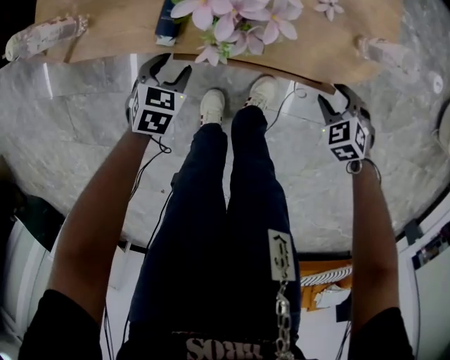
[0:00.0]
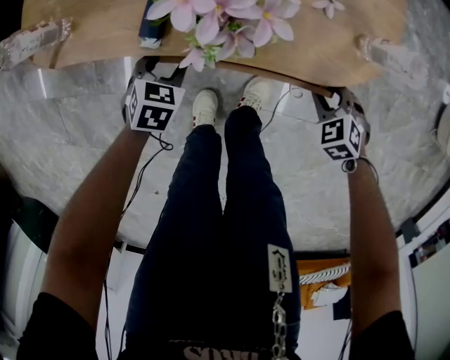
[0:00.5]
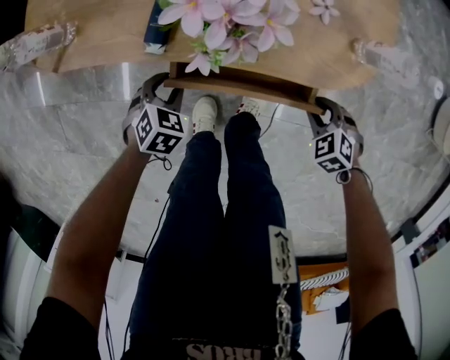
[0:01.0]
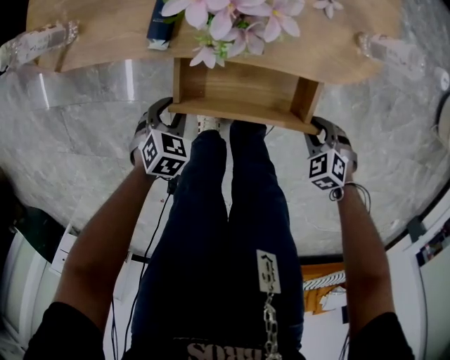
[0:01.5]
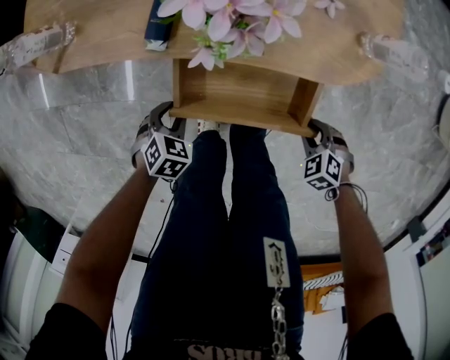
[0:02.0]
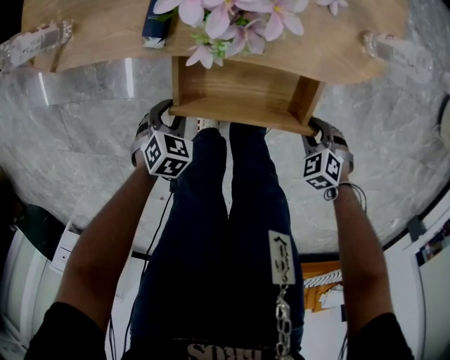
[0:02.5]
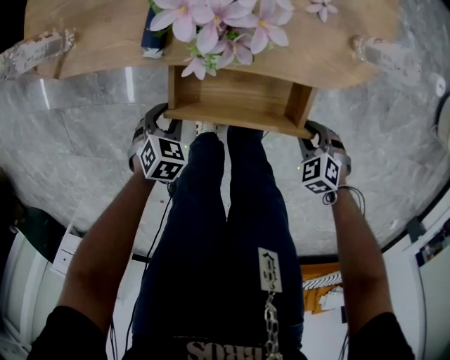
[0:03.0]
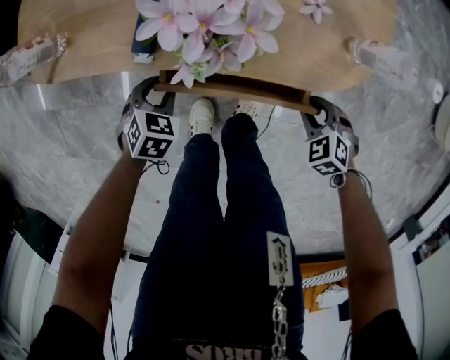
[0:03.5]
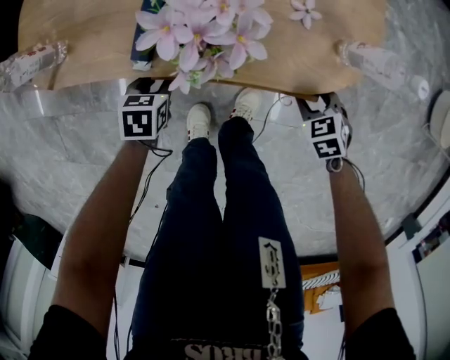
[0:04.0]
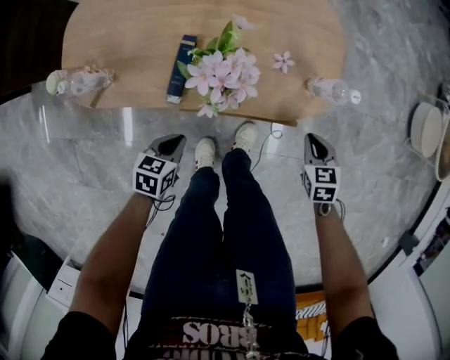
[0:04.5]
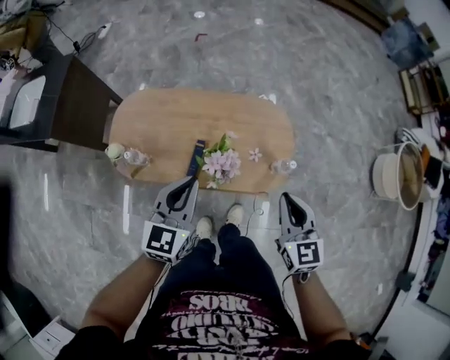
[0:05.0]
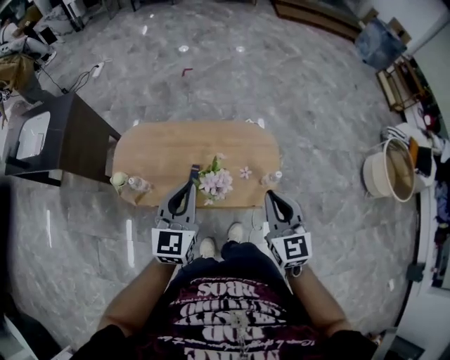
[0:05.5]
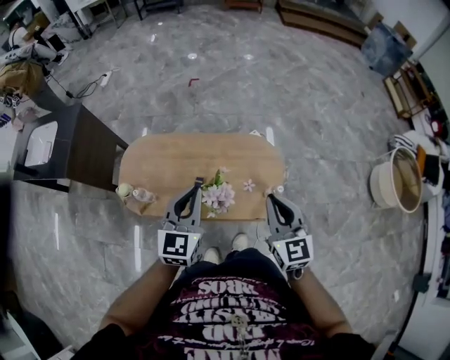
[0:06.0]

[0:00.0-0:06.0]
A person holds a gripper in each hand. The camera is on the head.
0:00.0 to 0:02.0: The right gripper changes place by approximately 15 cm, and closes its fingers, while the left gripper shifts by approximately 15 cm.
0:02.0 to 0:04.0: The right gripper moves roughly 15 cm, and swivels some 20 degrees. The left gripper shifts by about 15 cm, and swivels approximately 30 degrees.
0:04.0 to 0:06.0: The two grippers go about 60 cm upward. The left gripper angles its fingers upward, by some 60 degrees, and closes; the right gripper tilts its fingers some 50 degrees upward, and closes up.

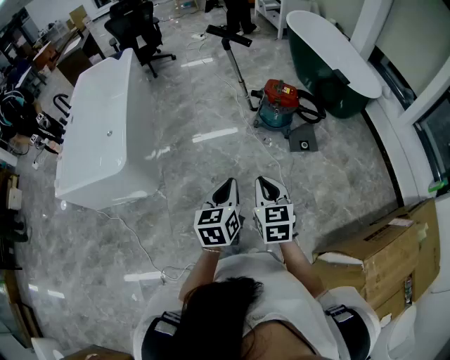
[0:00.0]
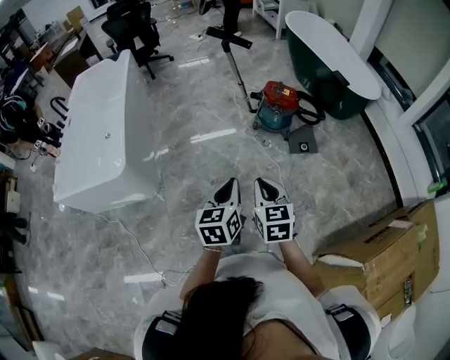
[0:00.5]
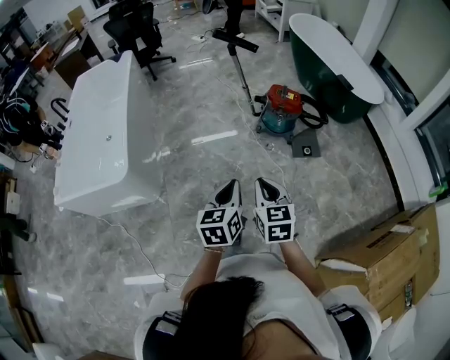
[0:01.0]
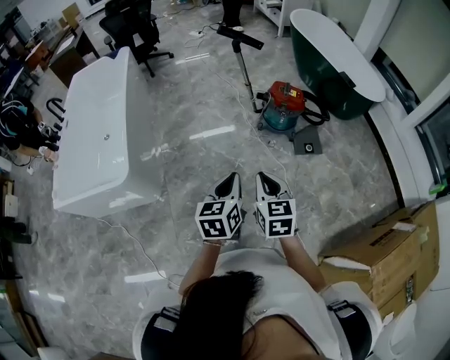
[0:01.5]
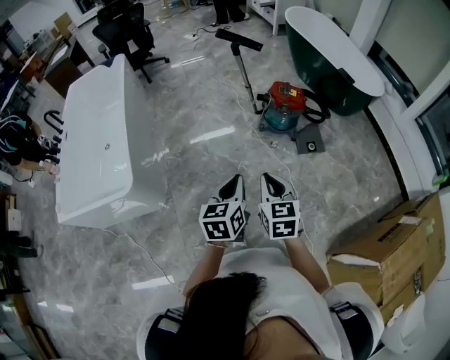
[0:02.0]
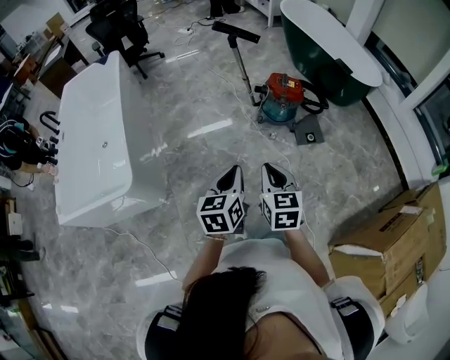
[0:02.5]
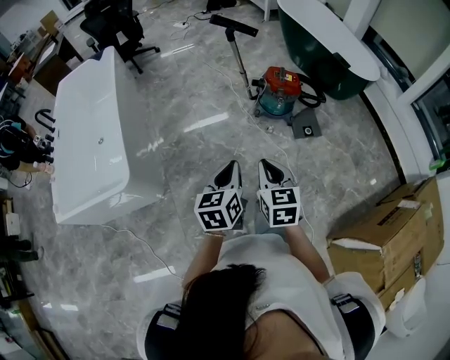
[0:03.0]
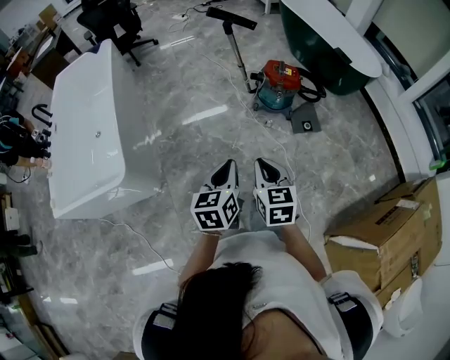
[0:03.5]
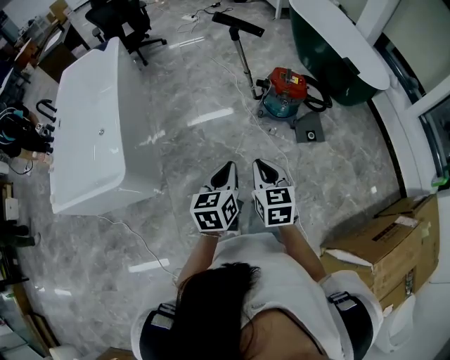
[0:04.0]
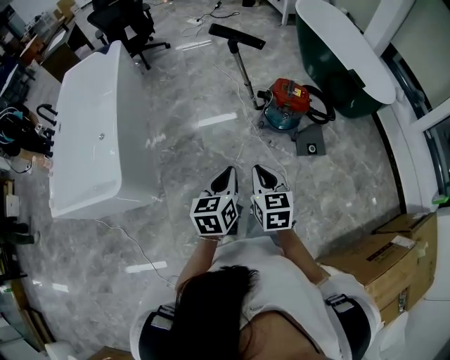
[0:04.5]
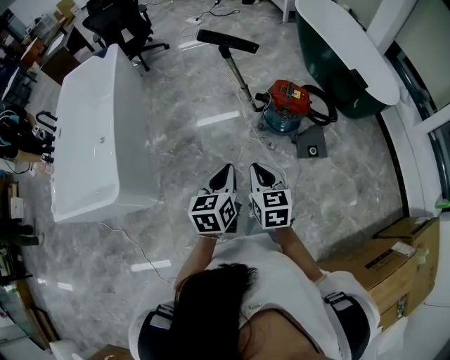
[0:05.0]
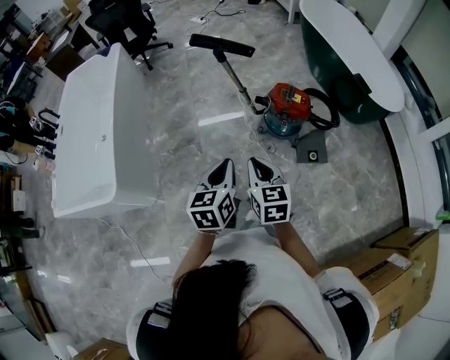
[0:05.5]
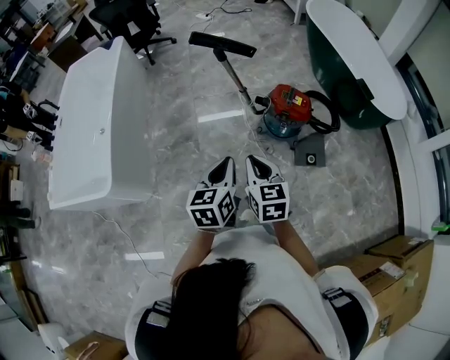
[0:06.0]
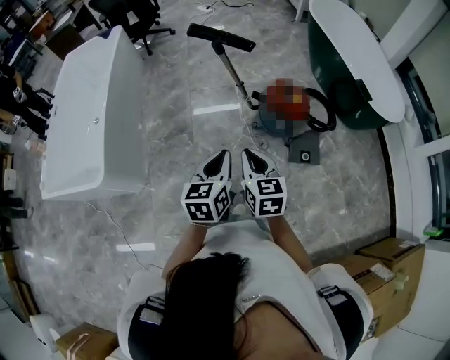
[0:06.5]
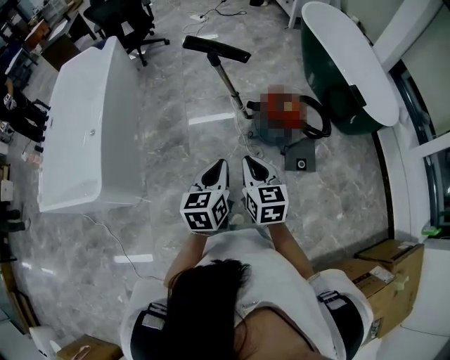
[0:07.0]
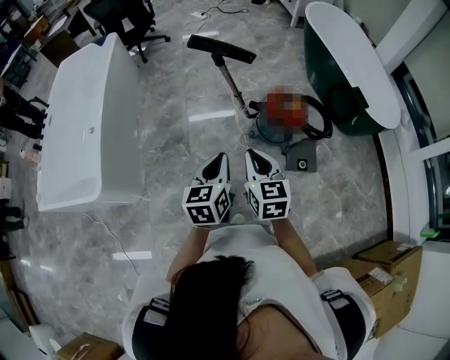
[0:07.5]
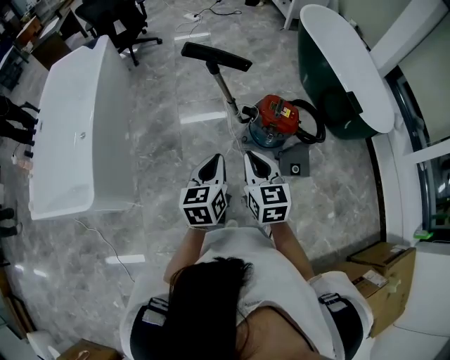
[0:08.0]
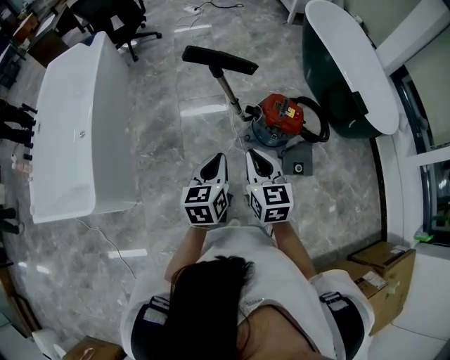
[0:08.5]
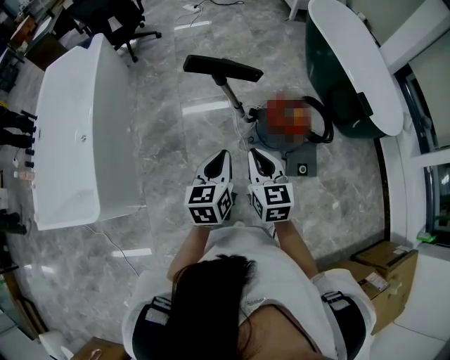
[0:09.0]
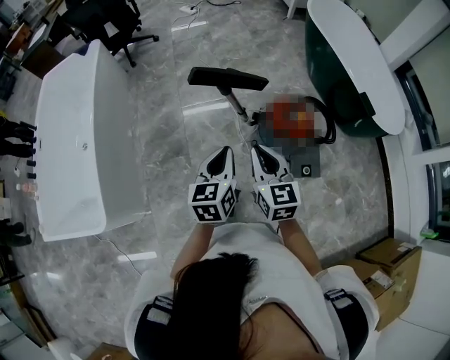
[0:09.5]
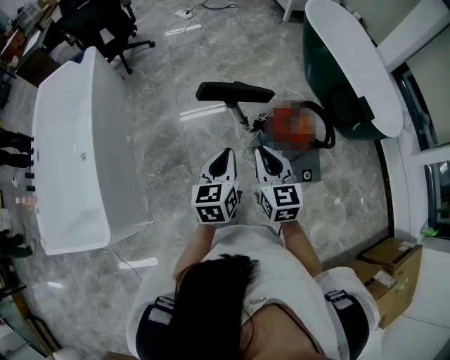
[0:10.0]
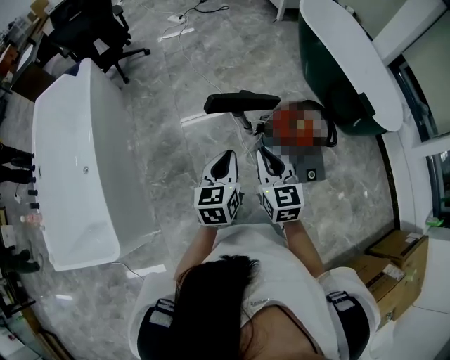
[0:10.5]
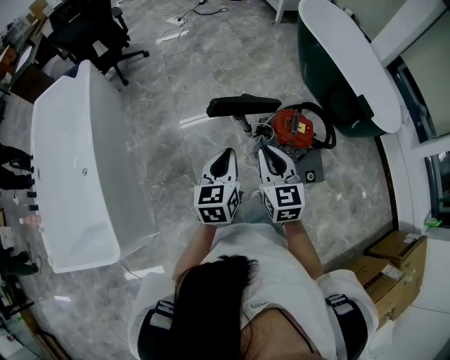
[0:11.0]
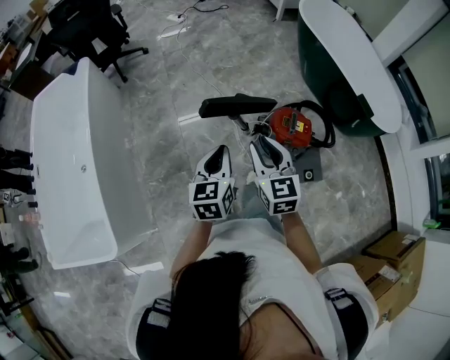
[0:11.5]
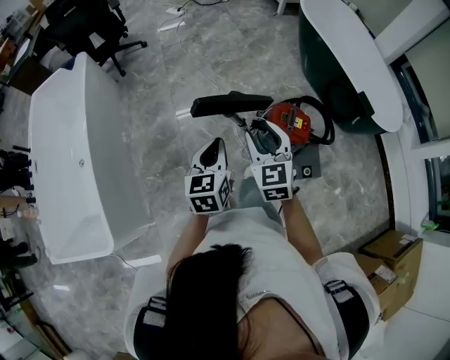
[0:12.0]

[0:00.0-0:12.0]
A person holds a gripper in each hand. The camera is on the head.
0:00.0 to 0:02.0: The two grippers go about 15 cm forward and to the left.
0:02.0 to 0:04.0: The grippers stay close to where they were, moving slightly.
0:04.0 to 0:06.0: Both grippers move forward and to the right, about 20 cm.
0:06.0 to 0:08.0: The two grippers go about 10 cm forward.
0:08.0 to 0:10.0: Both grippers travel together forward, roughly 20 cm.
0:10.0 to 0:12.0: Both grippers travel together forward, roughly 10 cm. The right gripper opens up.

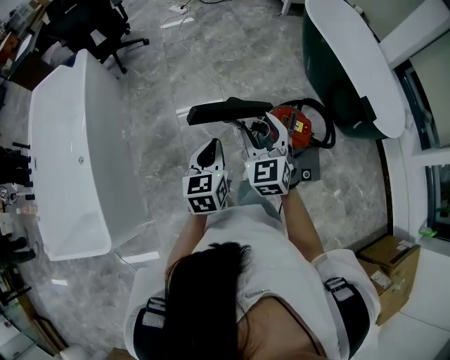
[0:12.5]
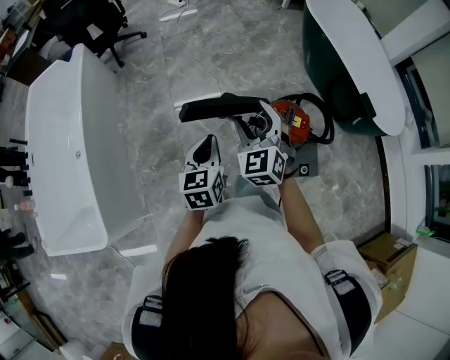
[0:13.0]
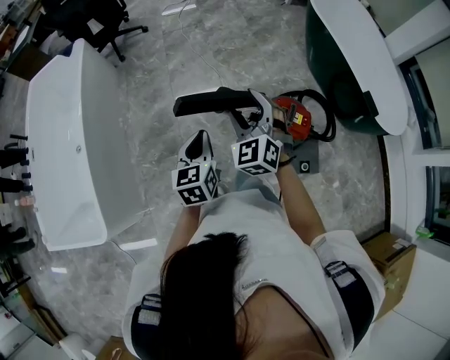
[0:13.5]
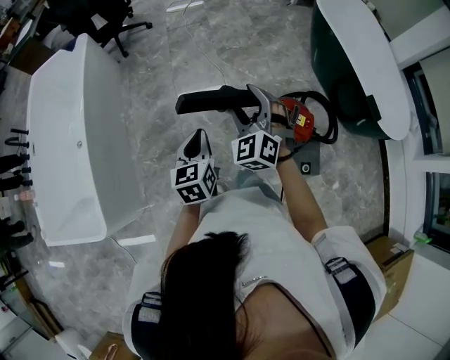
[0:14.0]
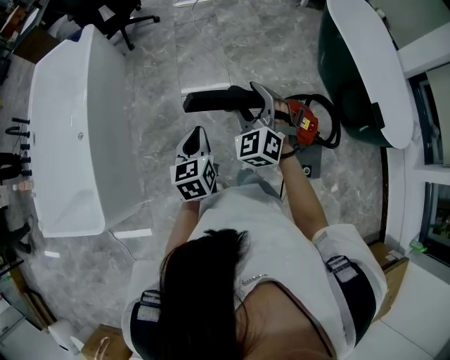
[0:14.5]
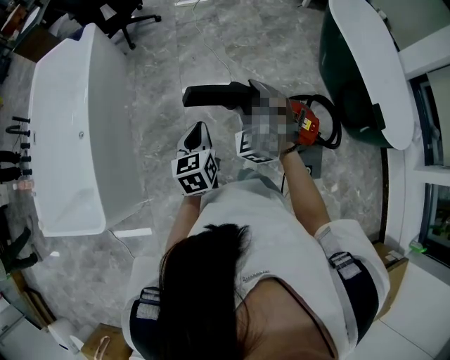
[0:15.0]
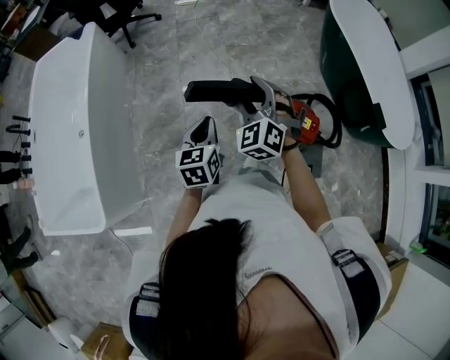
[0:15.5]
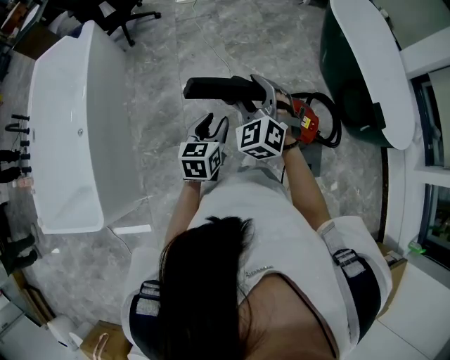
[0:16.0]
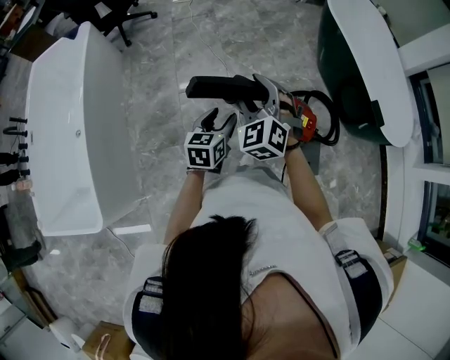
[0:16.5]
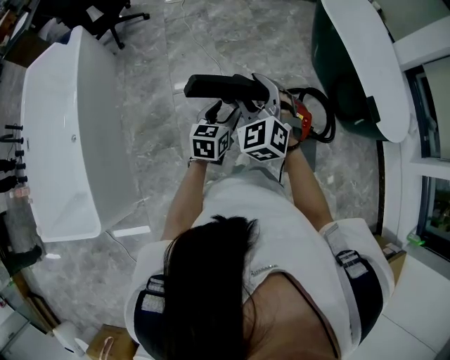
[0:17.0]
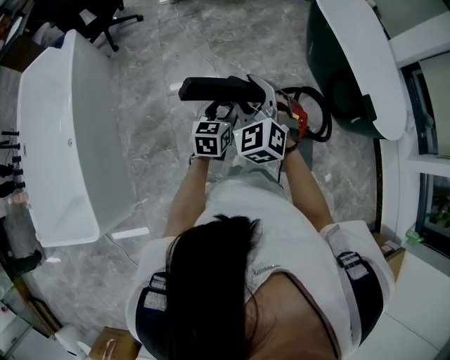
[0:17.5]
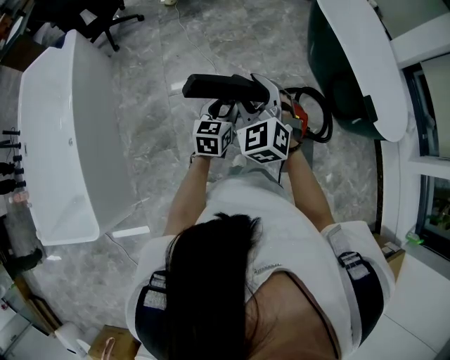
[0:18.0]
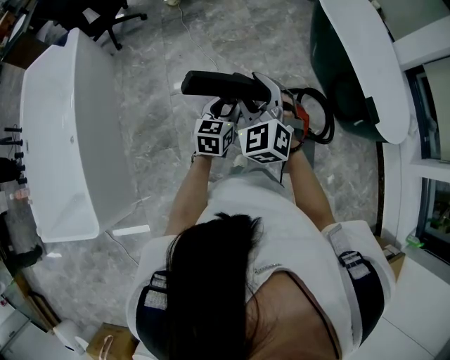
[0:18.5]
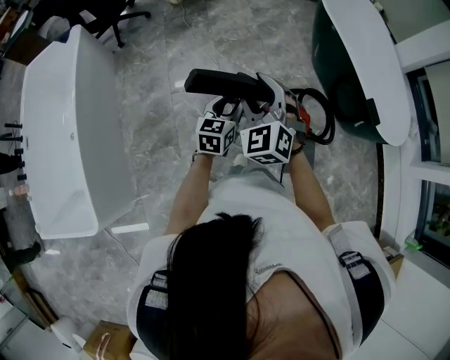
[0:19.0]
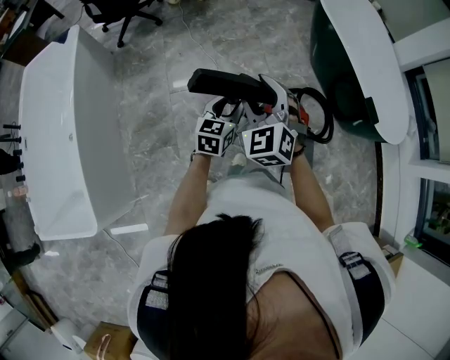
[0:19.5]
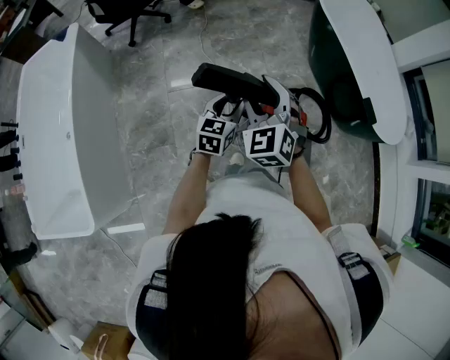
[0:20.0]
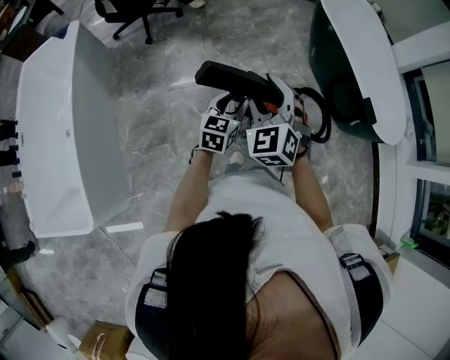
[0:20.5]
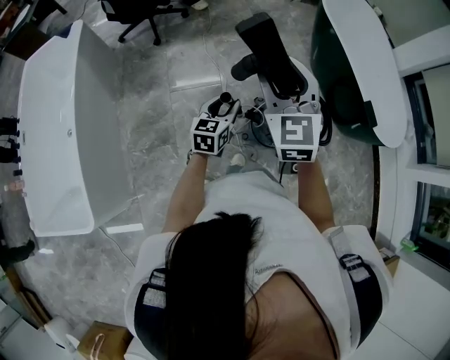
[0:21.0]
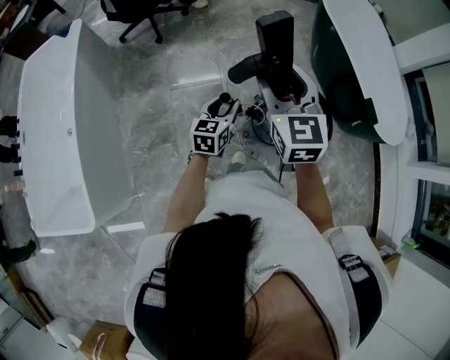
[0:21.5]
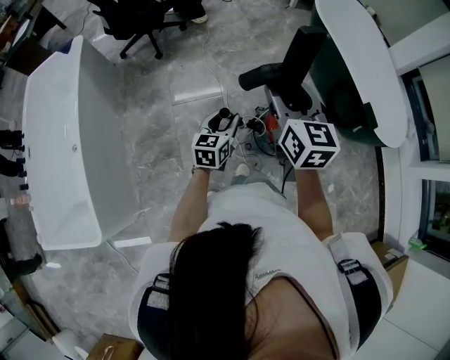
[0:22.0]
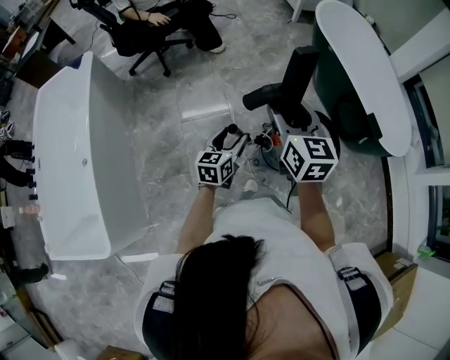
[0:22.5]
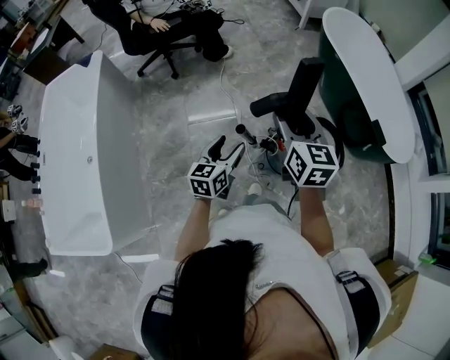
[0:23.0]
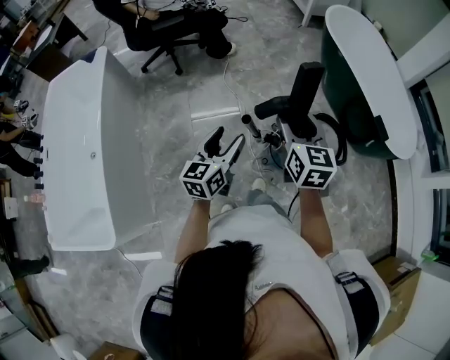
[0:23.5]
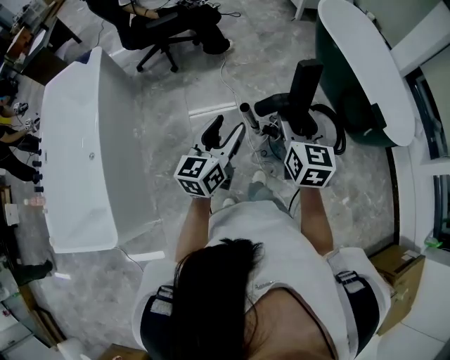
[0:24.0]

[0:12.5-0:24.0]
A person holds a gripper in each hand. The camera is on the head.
0:12.5 to 0:14.5: The right gripper moves forward, about 5 cm, and swivels roughly 20 degrees. The left gripper shifts some 5 cm to the left.
0:14.5 to 0:16.5: The left gripper shifts about 10 cm to the right, forward and downward, rotates some 20 degrees, and opens up.
0:16.5 to 0:18.5: The left gripper heads forward and to the right, covering roughly 10 cm.
0:18.5 to 0:20.0: The grippers stay close to where they were, moving slightly.
0:20.0 to 0:22.0: The right gripper is displaced upward by roughly 10 cm, and twists some 50 degrees clockwise, seen from behind.
0:22.0 to 0:24.0: The left gripper travels upward and backward by approximately 20 cm, and opens. Meanwhile the right gripper shifts roughly 10 cm backward.
